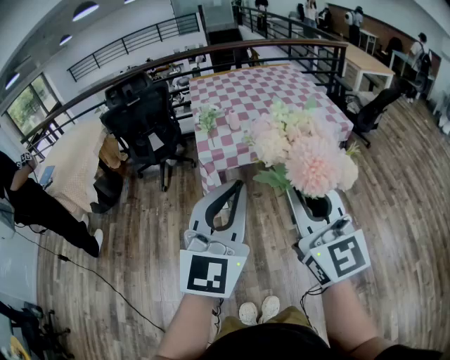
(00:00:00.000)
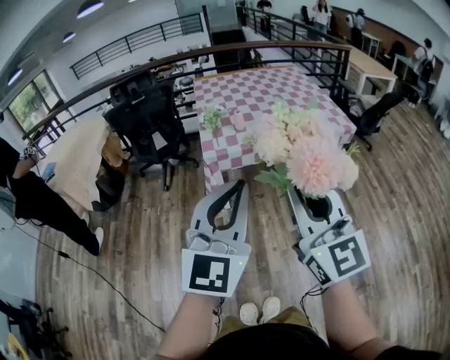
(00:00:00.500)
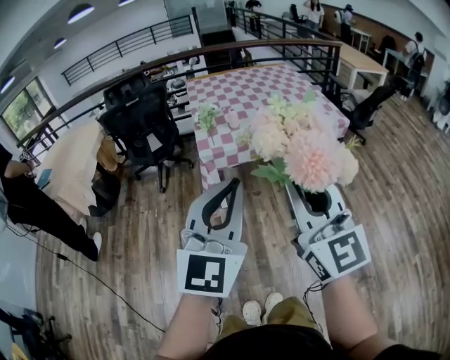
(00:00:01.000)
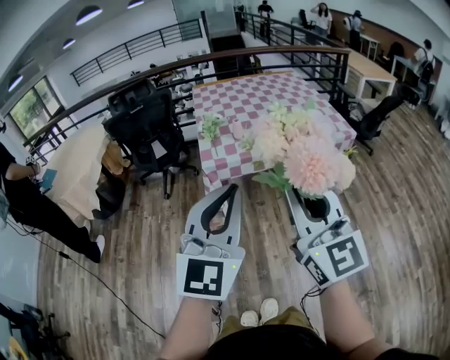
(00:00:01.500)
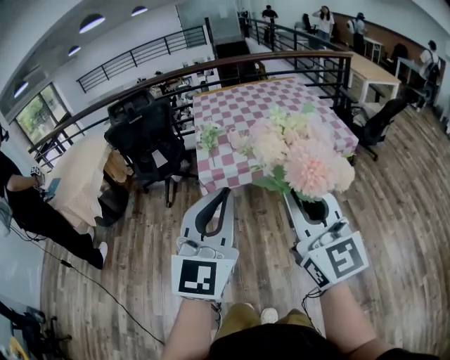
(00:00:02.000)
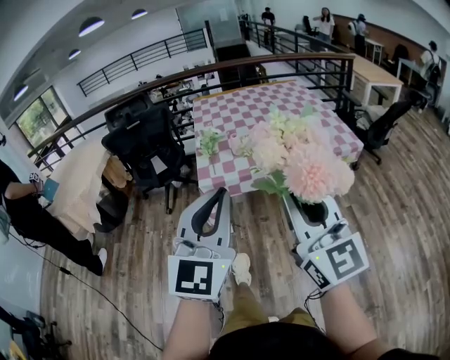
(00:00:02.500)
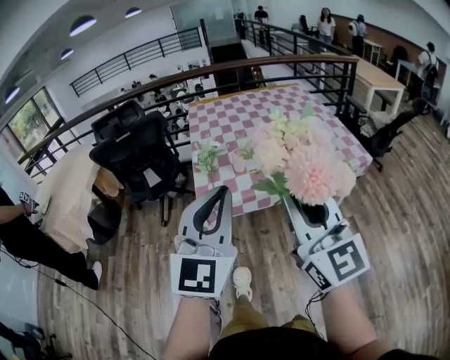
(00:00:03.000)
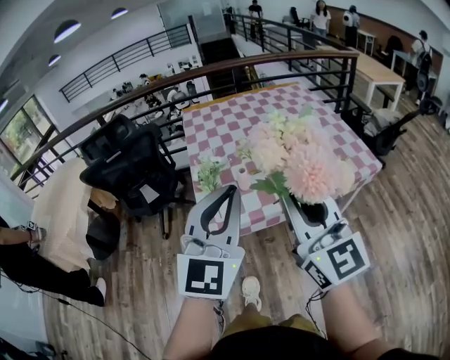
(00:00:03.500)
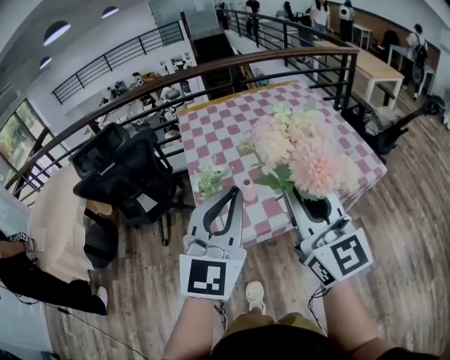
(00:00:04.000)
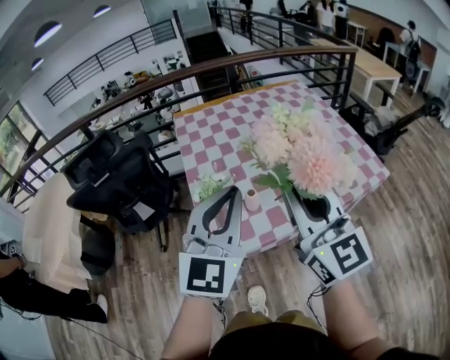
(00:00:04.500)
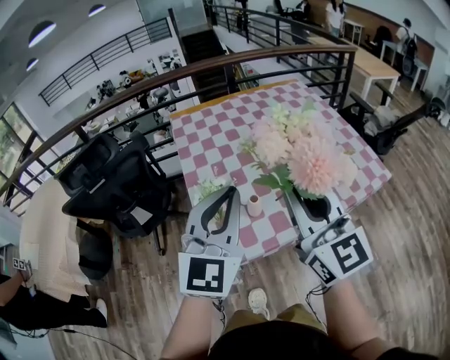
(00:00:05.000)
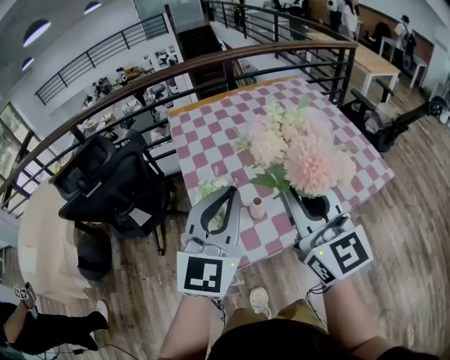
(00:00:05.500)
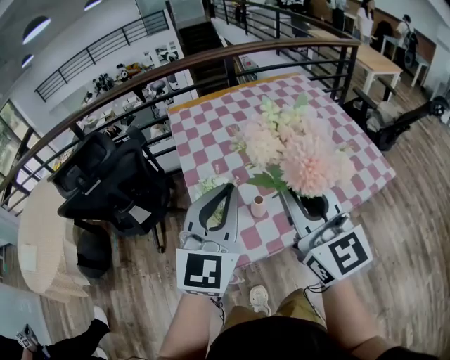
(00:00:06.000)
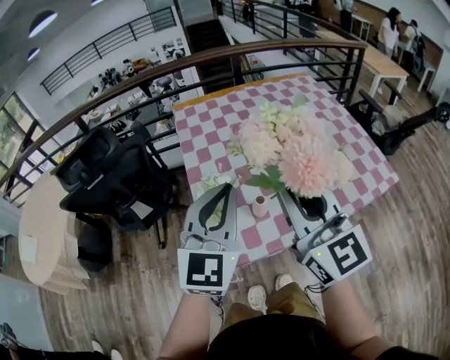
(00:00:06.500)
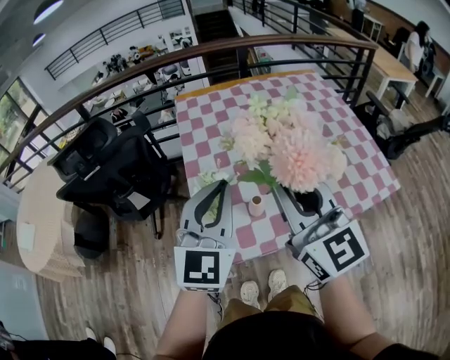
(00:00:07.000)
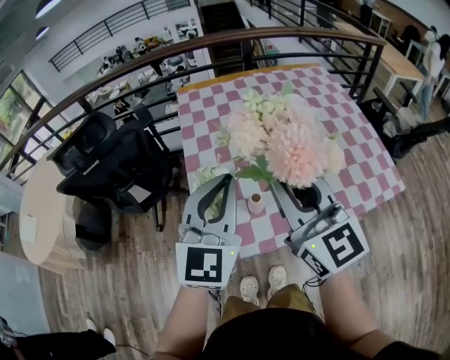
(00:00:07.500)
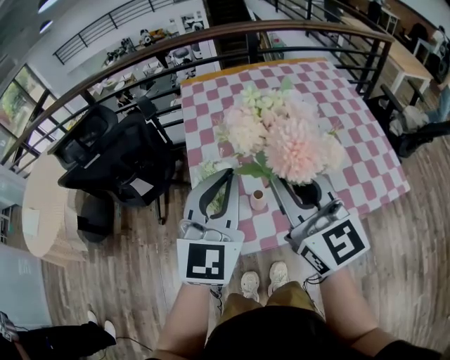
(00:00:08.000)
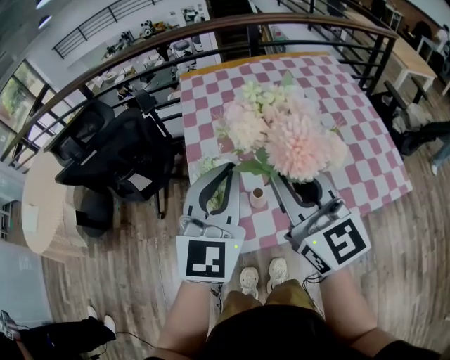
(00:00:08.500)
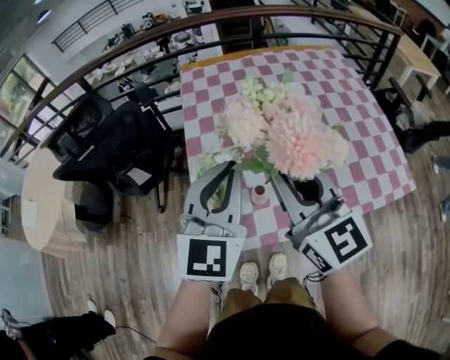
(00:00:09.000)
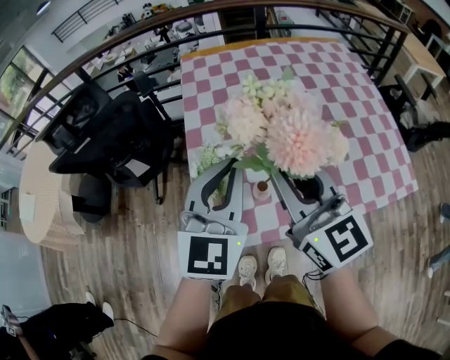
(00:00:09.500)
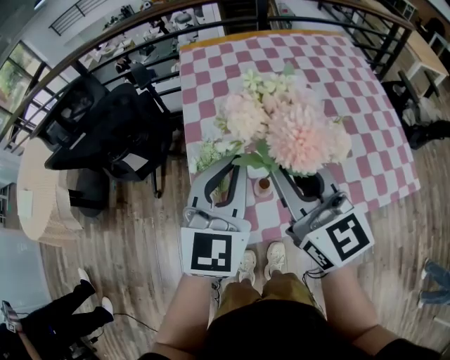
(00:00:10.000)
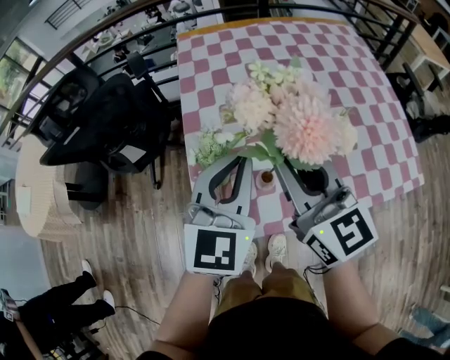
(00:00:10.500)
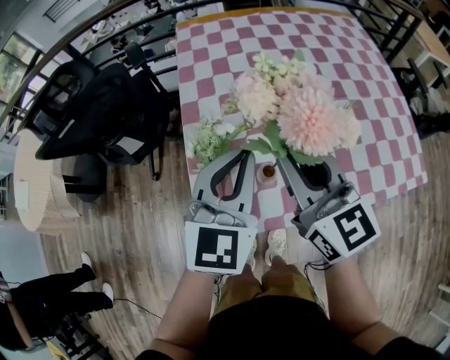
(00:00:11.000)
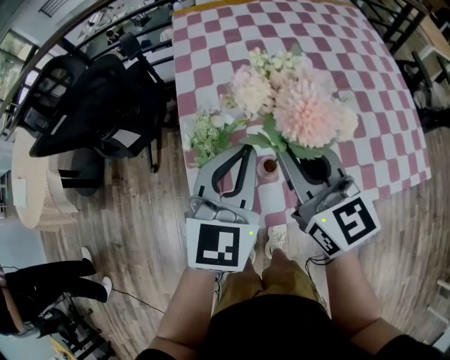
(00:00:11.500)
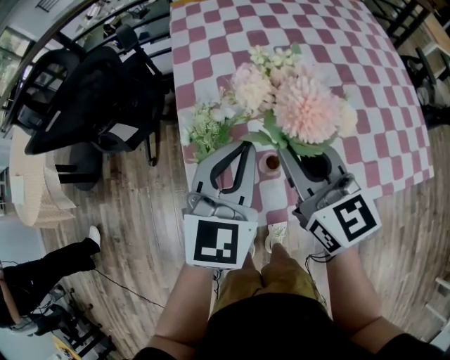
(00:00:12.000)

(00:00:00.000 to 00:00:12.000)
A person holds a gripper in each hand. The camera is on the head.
00:00:00.000 - 00:00:02.000: The grippers both shift forward by some 5 cm.
00:00:02.000 - 00:00:04.000: The pair of grippers is taken forward, some 40 cm.
00:00:04.000 - 00:00:06.000: Both grippers move forward and to the left, roughly 15 cm.
00:00:06.000 - 00:00:08.000: The right gripper moves forward, approximately 5 cm; the left gripper ends up roughly 5 cm from where it was.
00:00:08.000 - 00:00:10.000: The grippers both shift downward by approximately 5 cm.
00:00:10.000 - 00:00:12.000: The two grippers go about 10 cm downward.

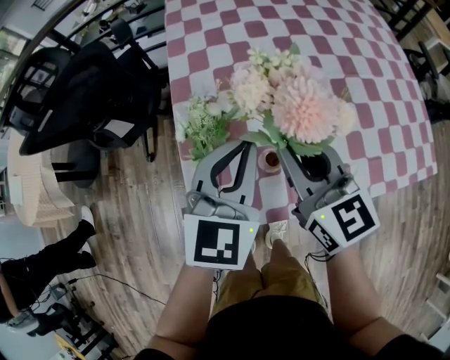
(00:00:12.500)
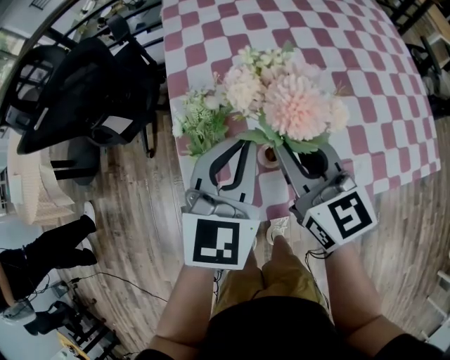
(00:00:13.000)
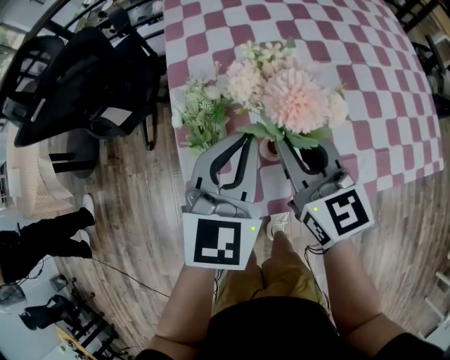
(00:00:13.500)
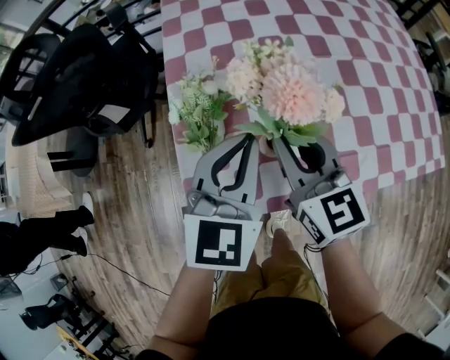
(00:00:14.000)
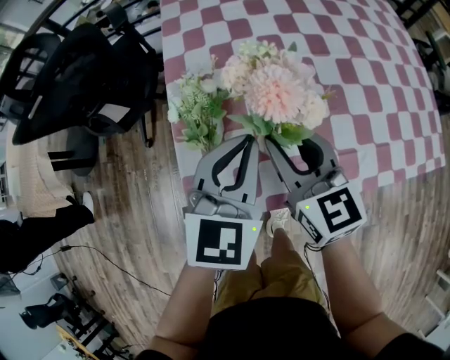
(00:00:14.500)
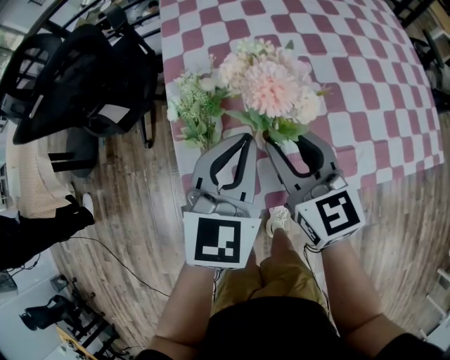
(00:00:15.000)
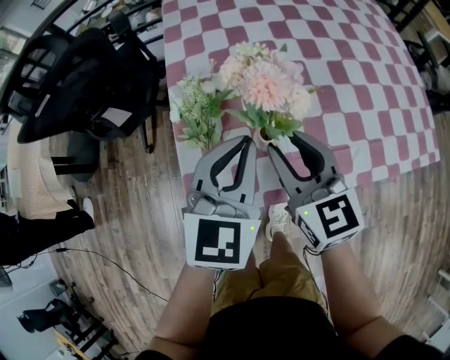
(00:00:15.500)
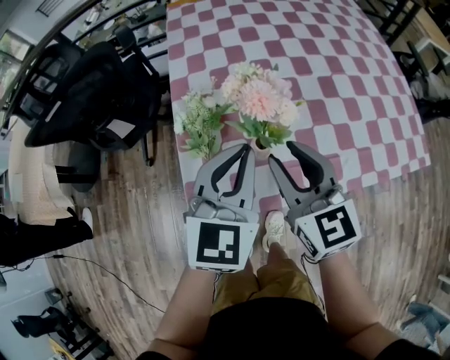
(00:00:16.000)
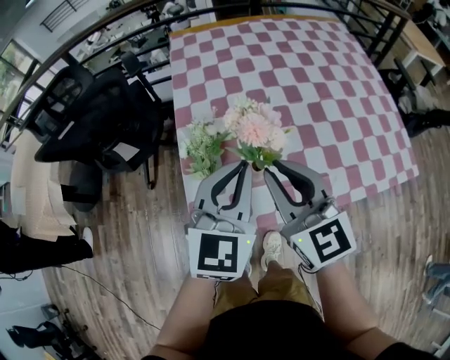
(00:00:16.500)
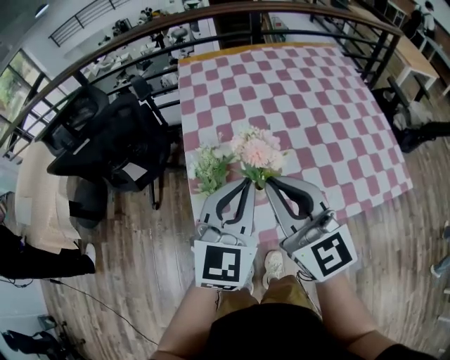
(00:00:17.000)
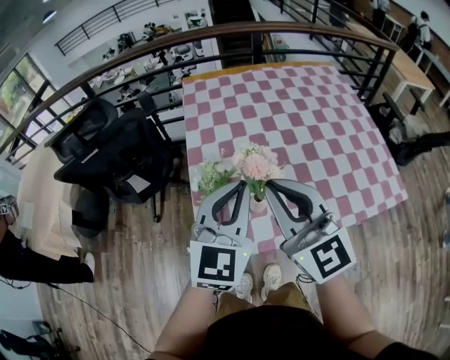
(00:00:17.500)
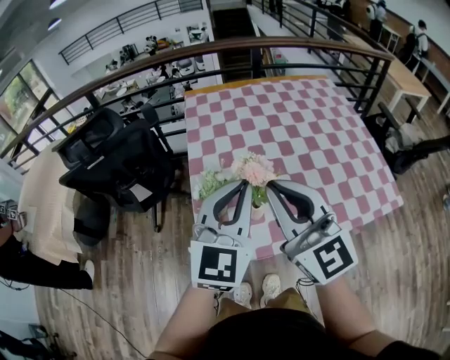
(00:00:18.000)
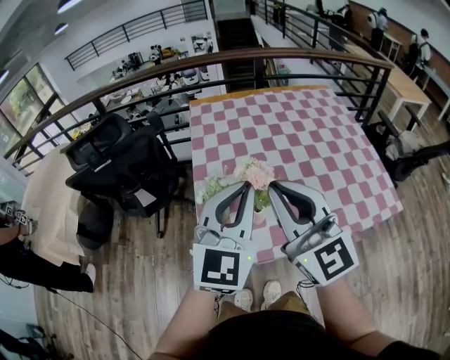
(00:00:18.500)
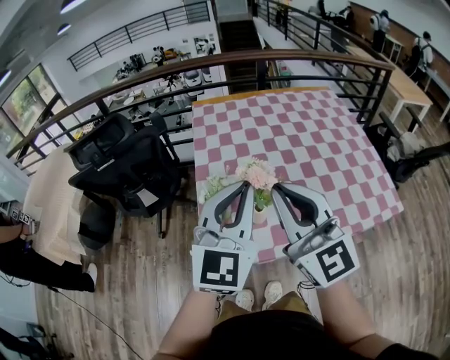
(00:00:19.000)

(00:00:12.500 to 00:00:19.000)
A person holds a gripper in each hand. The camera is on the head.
00:00:12.500 - 00:00:14.500: The right gripper goes some 5 cm downward.
00:00:14.500 - 00:00:17.000: The grippers both shift upward by roughly 15 cm. The right gripper turns by some 20 degrees, and closes up.
00:00:17.000 - 00:00:19.000: The two grippers go approximately 10 cm upward.

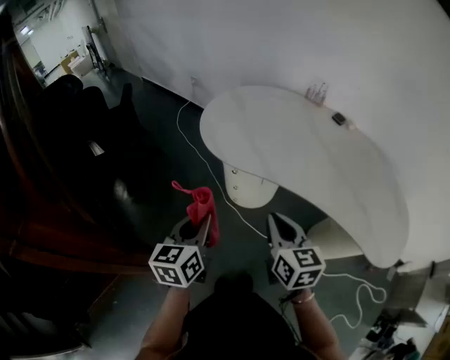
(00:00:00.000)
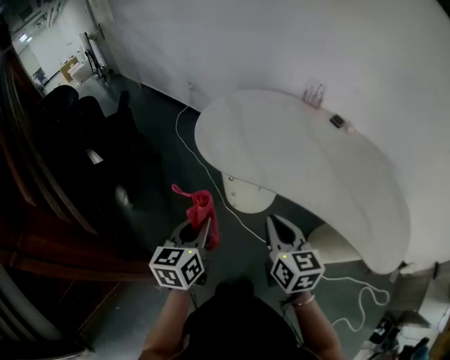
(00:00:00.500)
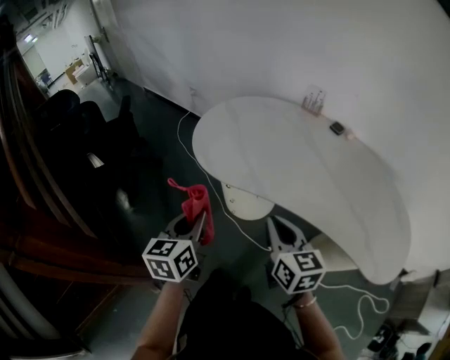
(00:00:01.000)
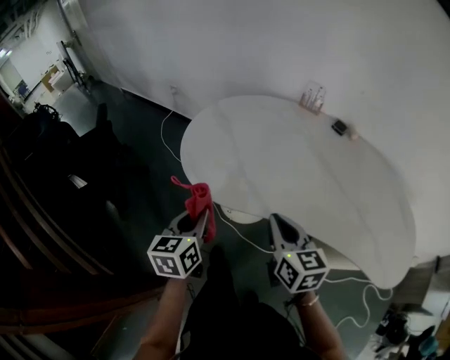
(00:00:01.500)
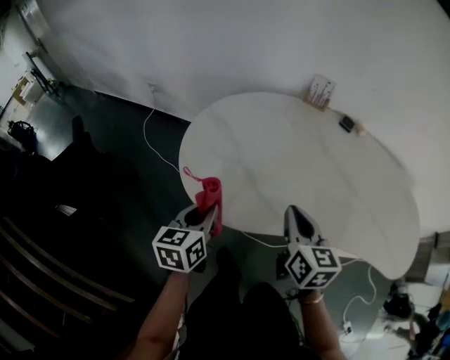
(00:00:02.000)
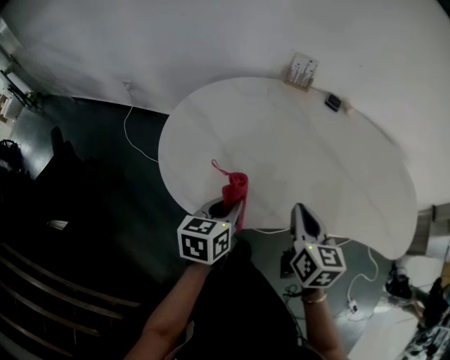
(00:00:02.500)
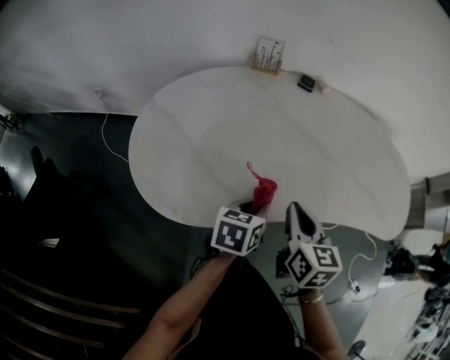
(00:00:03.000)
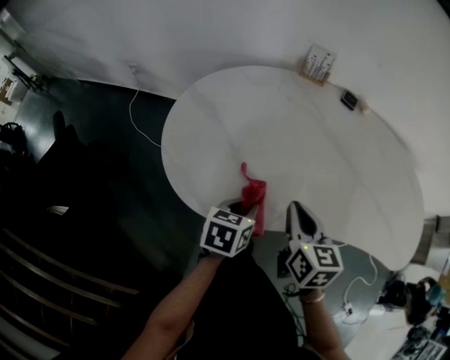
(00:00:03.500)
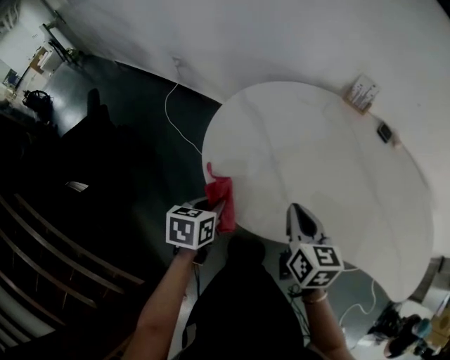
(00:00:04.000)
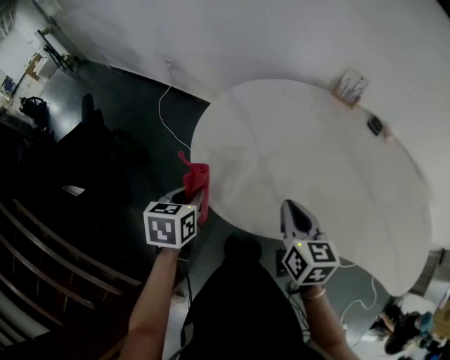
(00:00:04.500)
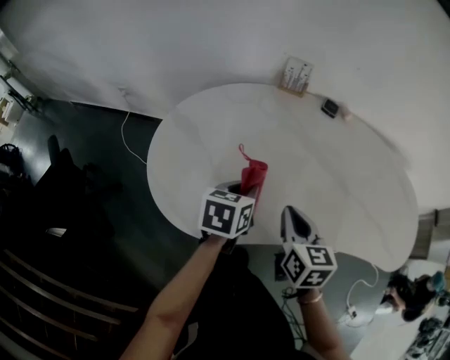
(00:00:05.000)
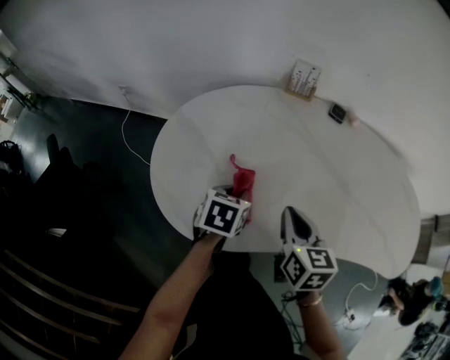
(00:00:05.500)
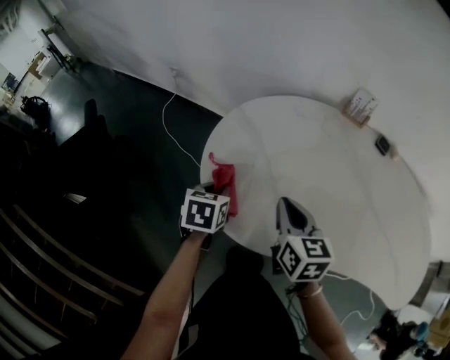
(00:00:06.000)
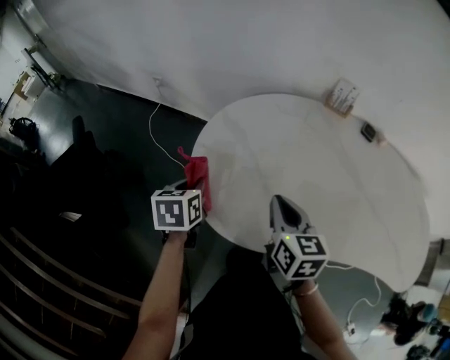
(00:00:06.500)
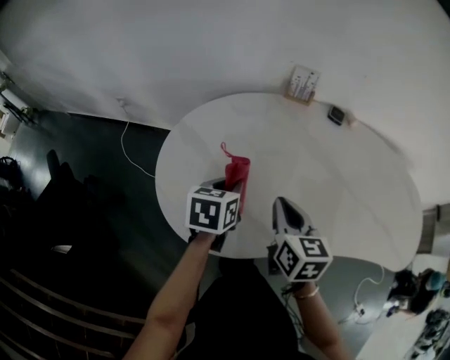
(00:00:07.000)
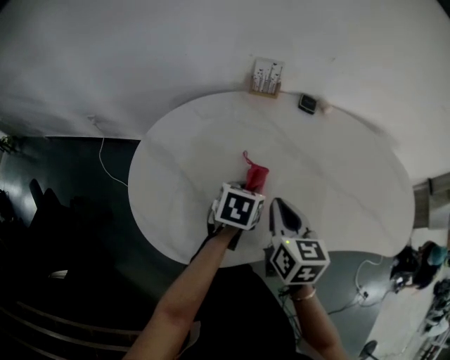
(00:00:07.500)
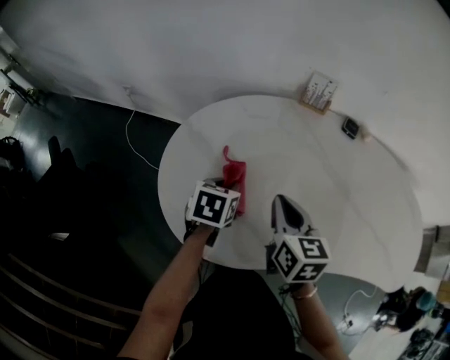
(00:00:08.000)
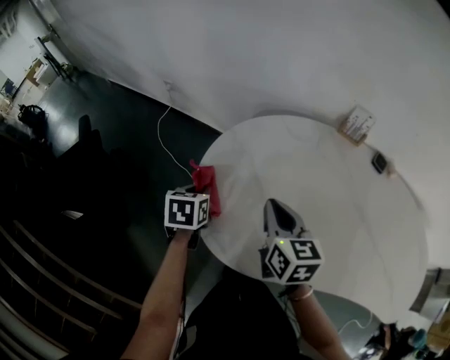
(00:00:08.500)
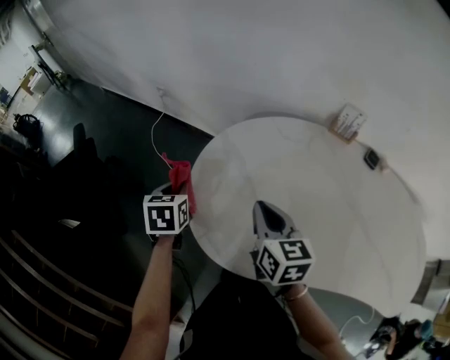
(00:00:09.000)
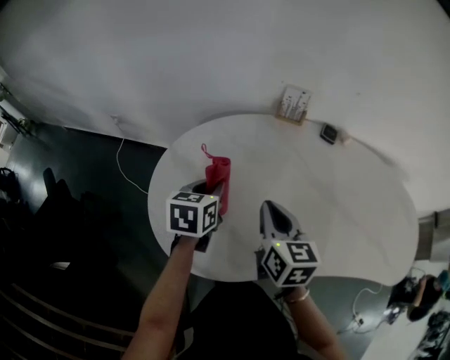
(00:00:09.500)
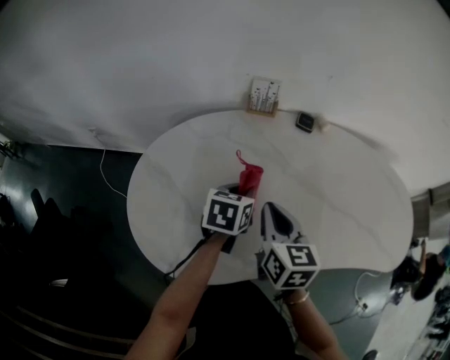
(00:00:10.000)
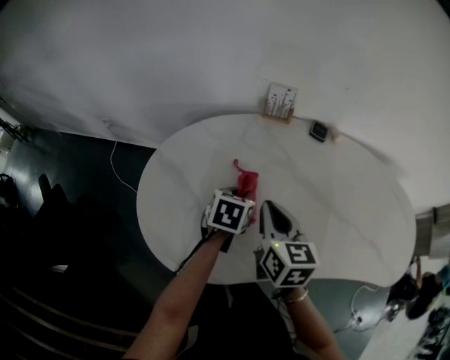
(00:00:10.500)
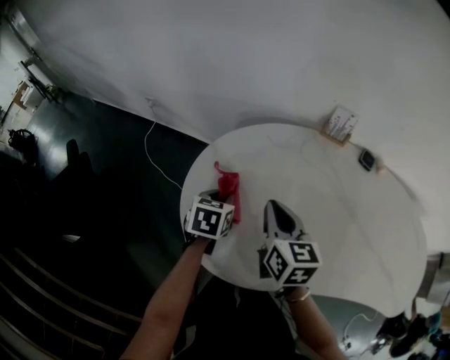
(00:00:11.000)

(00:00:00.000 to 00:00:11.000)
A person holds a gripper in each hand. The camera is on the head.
00:00:00.000 - 00:00:02.000: Both grippers travel together forward, approximately 25 cm. The right gripper swivels about 20 degrees, while the left gripper changes its angle by about 20 degrees.
00:00:02.000 - 00:00:03.500: The left gripper turns by some 30 degrees.
00:00:03.500 - 00:00:05.500: The right gripper goes to the left and returns, roughly 10 cm each way; the left gripper moves left and right over about 25 cm, changing direction 2 times.
00:00:07.500 - 00:00:09.000: The left gripper ends up some 40 cm from where it was, and turns by approximately 50 degrees. The right gripper shifts by approximately 20 cm, and swivels about 30 degrees.
00:00:09.000 - 00:00:11.000: The left gripper rotates roughly 20 degrees.
